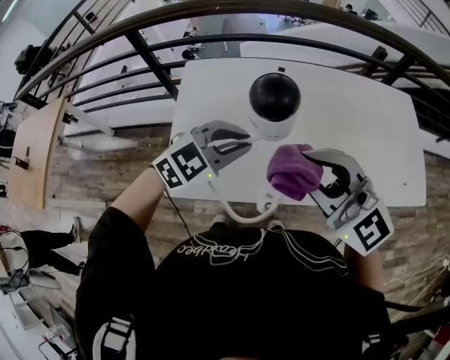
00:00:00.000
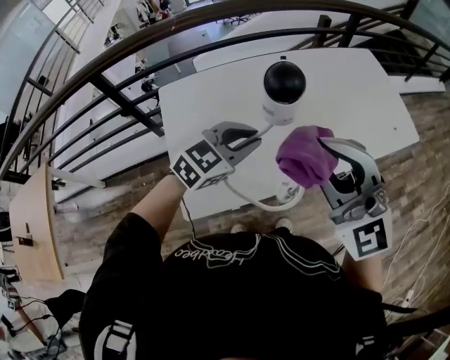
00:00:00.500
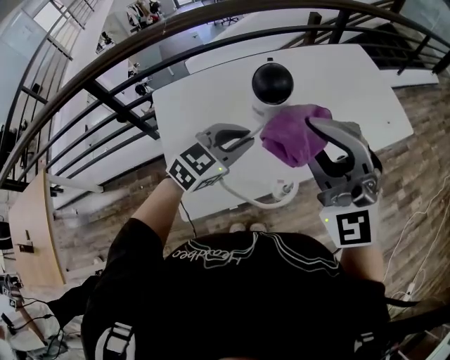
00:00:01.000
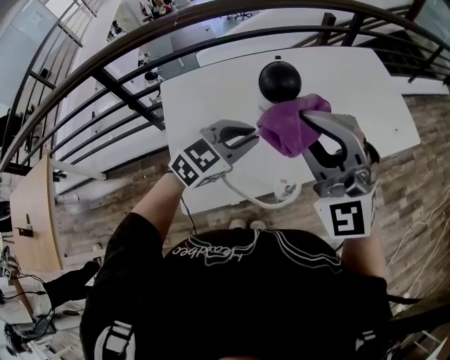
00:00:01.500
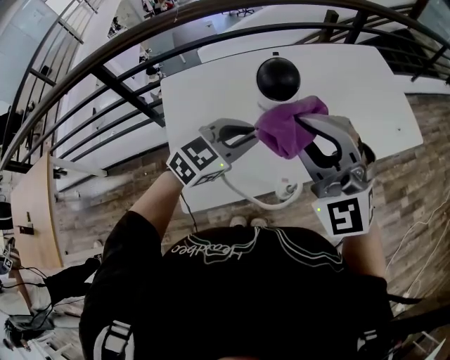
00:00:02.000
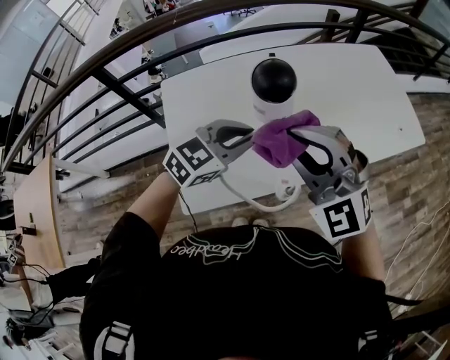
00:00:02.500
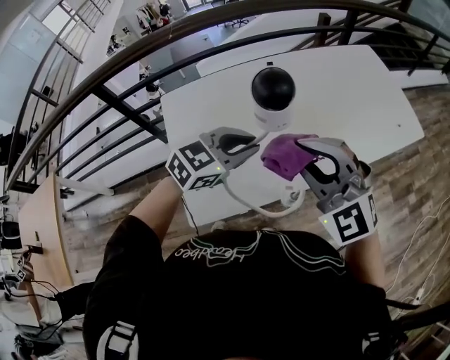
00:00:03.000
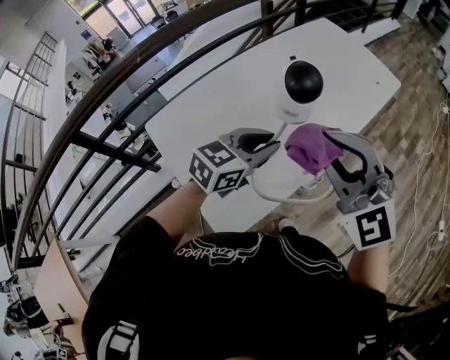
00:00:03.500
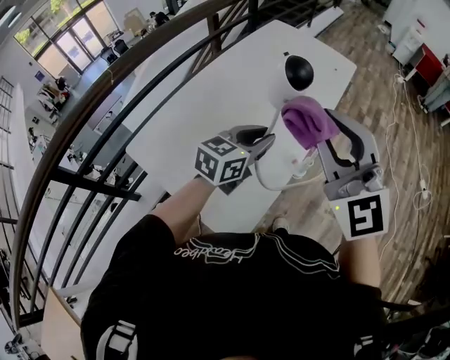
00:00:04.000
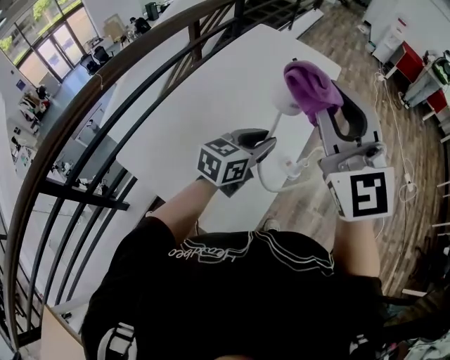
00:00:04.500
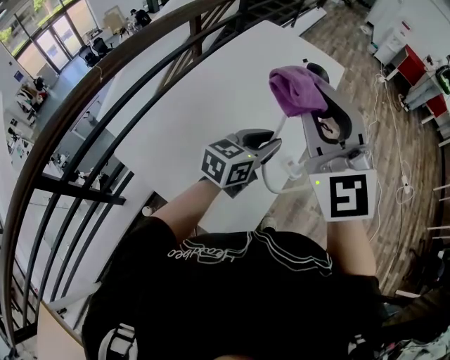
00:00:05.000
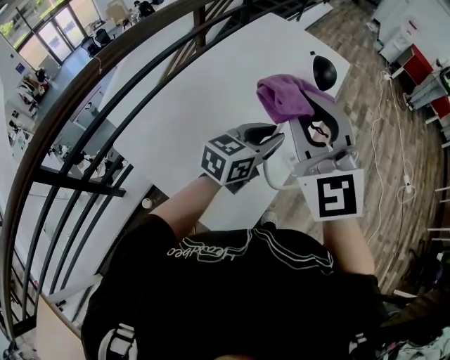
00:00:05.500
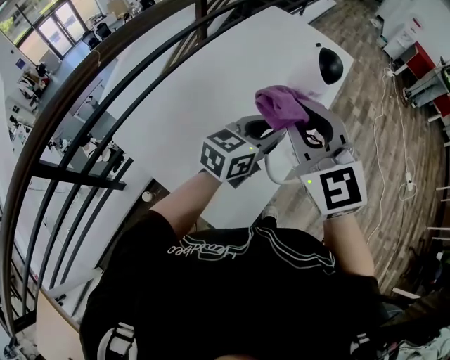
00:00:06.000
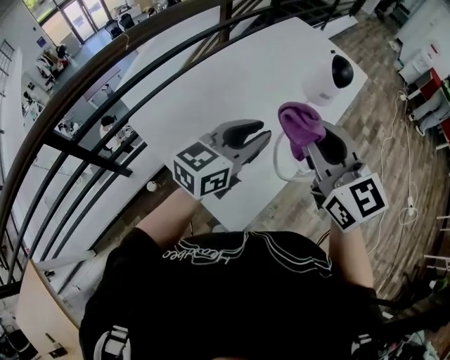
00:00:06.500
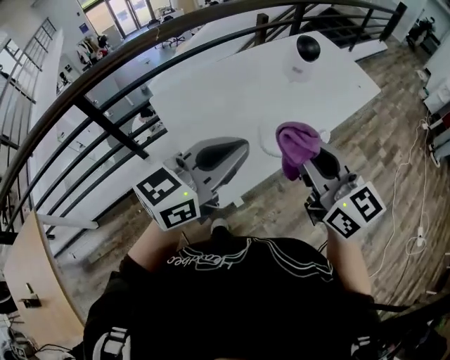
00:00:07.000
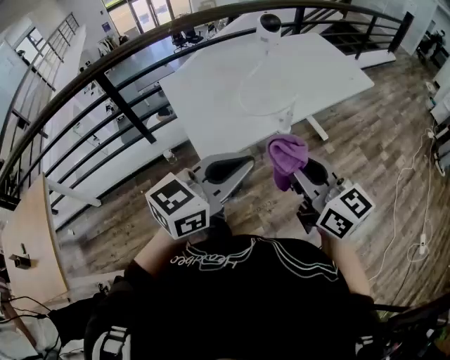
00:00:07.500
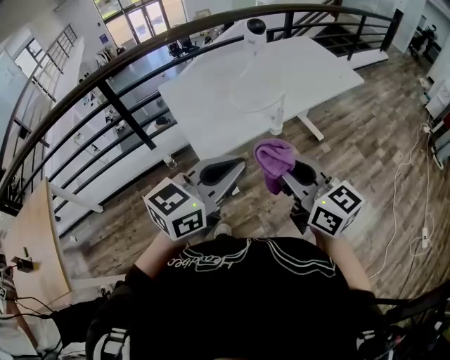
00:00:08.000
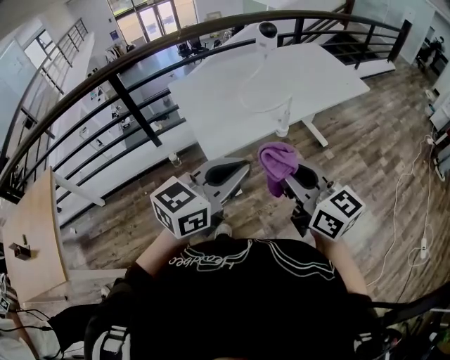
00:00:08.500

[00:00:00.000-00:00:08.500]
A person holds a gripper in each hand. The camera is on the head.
00:00:00.000 to 00:00:02.000: The right gripper shifts by approximately 5 cm, and rotates approximately 40 degrees.
00:00:02.000 to 00:00:04.000: The left gripper turns by about 30 degrees; the right gripper moves approximately 10 cm, and swivels some 50 degrees.
00:00:04.000 to 00:00:06.500: The left gripper moves to the left, backward and upward, approximately 10 cm; the right gripper heads to the left and downward, covering roughly 10 cm, and changes its angle by roughly 30 degrees.
00:00:06.500 to 00:00:08.500: The two grippers travel together, backward, approximately 40 cm. The right gripper turns by roughly 30 degrees. The left gripper closes.

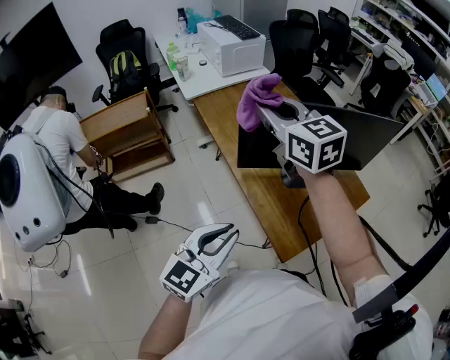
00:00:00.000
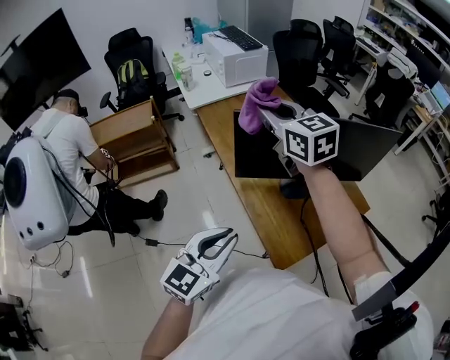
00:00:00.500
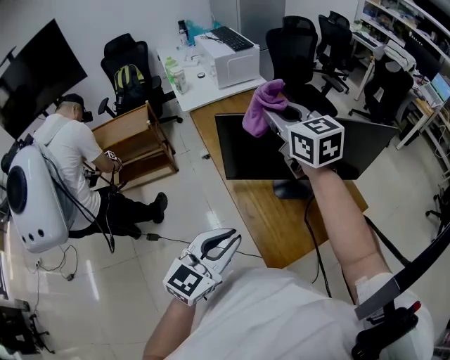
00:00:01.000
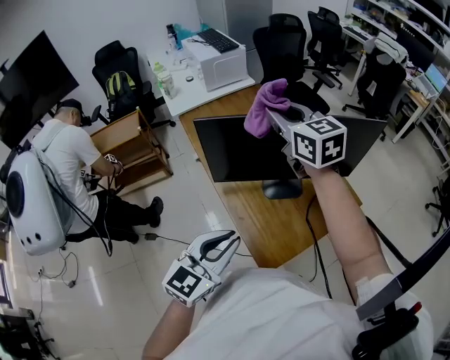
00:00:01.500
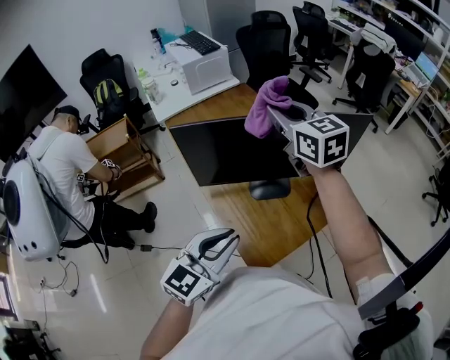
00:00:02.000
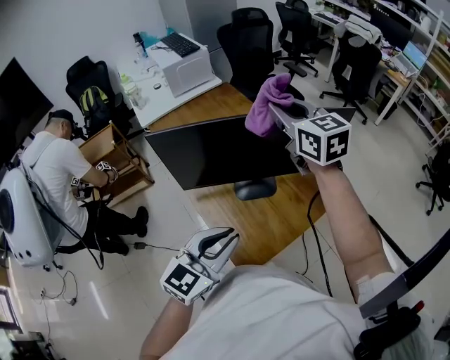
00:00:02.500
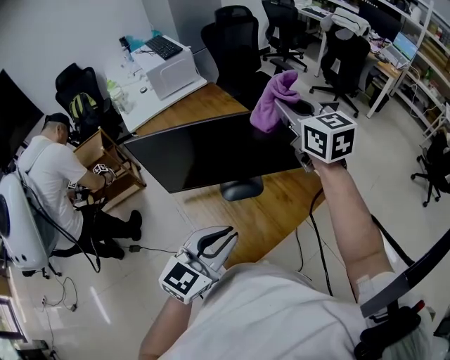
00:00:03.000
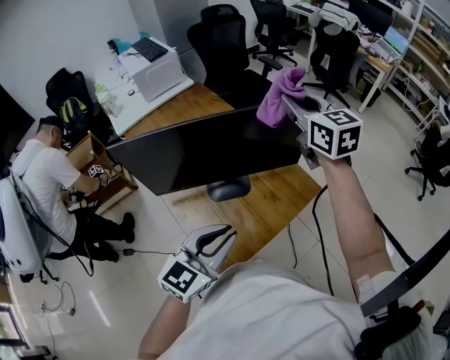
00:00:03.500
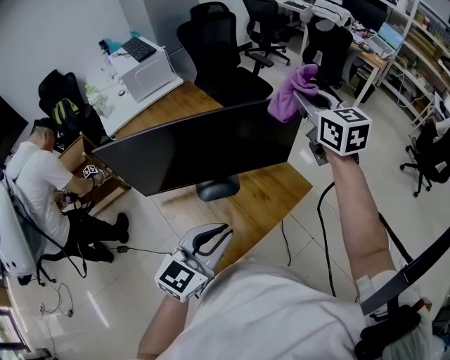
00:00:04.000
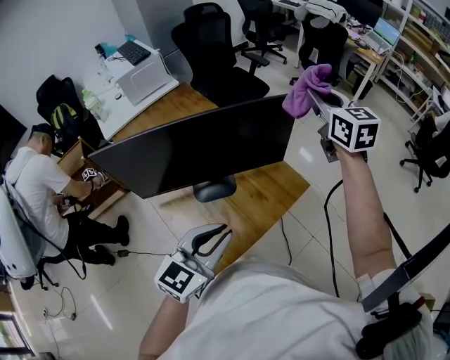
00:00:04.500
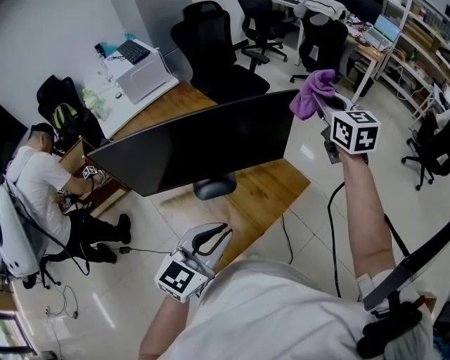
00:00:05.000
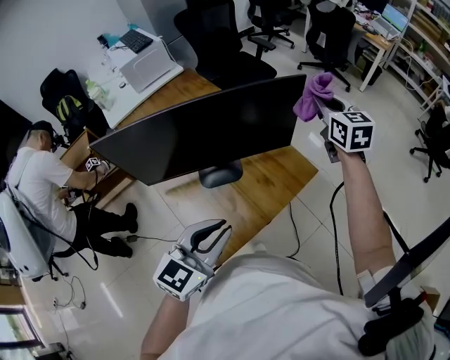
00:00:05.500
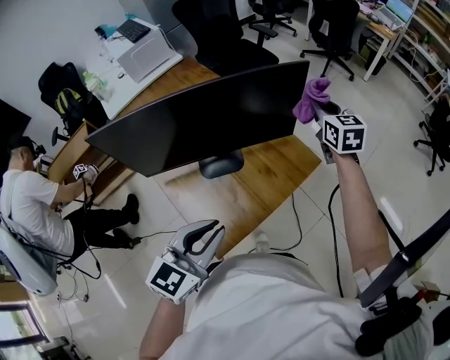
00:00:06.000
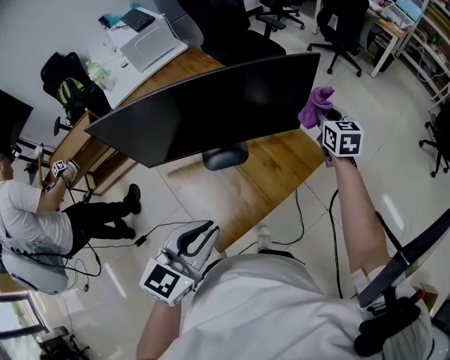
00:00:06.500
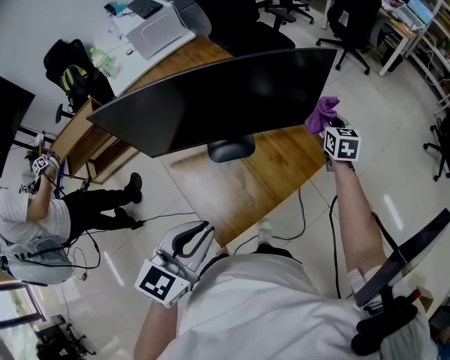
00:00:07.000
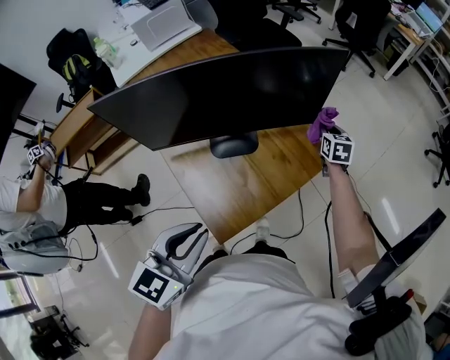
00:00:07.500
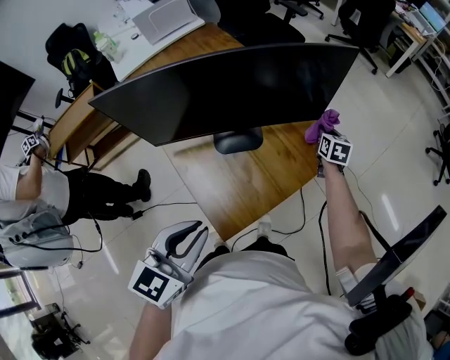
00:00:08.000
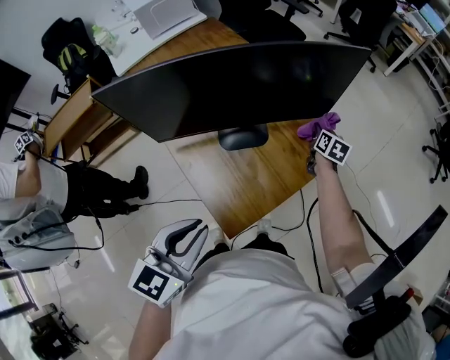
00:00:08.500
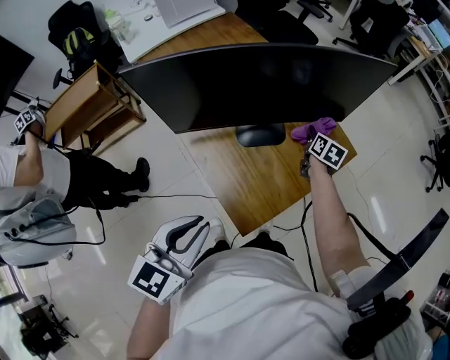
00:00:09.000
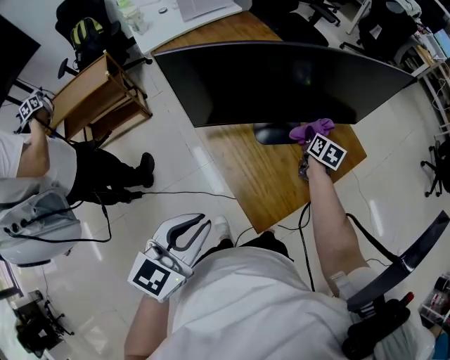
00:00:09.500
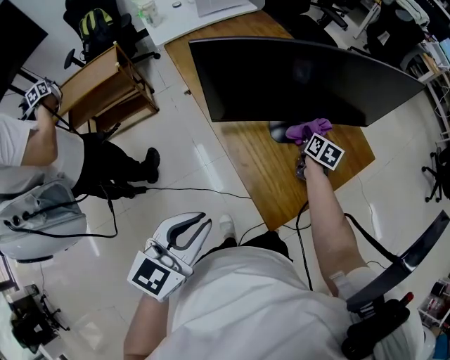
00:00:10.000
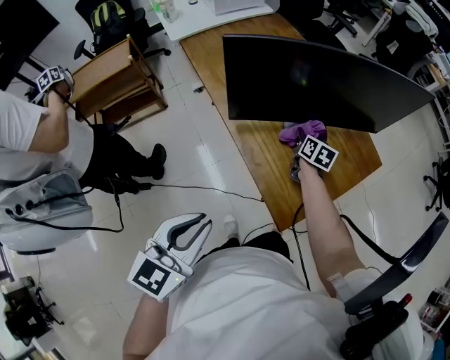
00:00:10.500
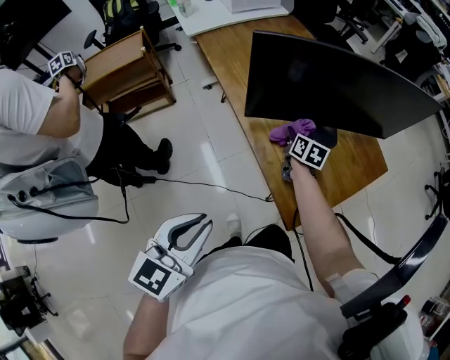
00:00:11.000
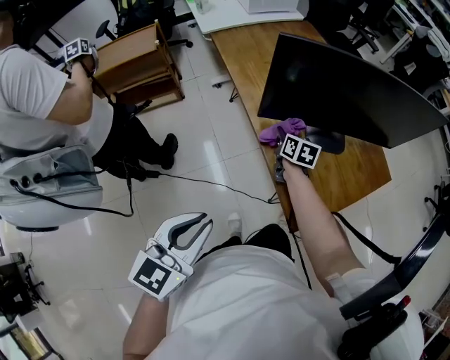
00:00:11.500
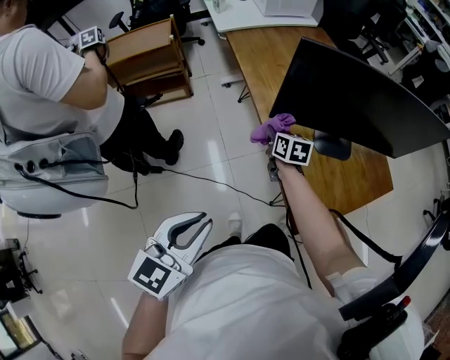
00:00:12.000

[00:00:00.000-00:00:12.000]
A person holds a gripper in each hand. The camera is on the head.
00:00:00.000 to 00:00:02.000: Both grippers travel together to the right, about 15 cm.
00:00:02.000 to 00:00:04.000: The right gripper is displaced to the right by about 25 cm. The left gripper travels to the right by some 15 cm.
00:00:04.000 to 00:00:06.000: The right gripper goes roughly 20 cm downward and to the right.
00:00:06.000 to 00:00:08.000: The right gripper travels downward by some 25 cm, and rotates about 30 degrees. Meanwhile the left gripper goes some 5 cm to the left.
00:00:08.000 to 00:00:10.000: Both grippers move to the left and backward, roughly 20 cm.
00:00:10.000 to 00:00:12.000: The right gripper travels to the left by roughly 30 cm, and turns by some 30 degrees; the left gripper is displaced to the left and backward by some 10 cm.

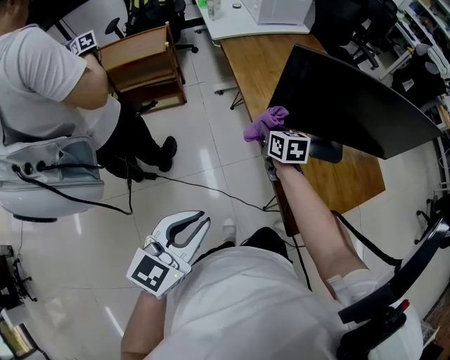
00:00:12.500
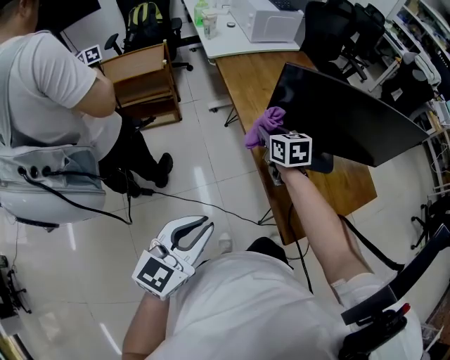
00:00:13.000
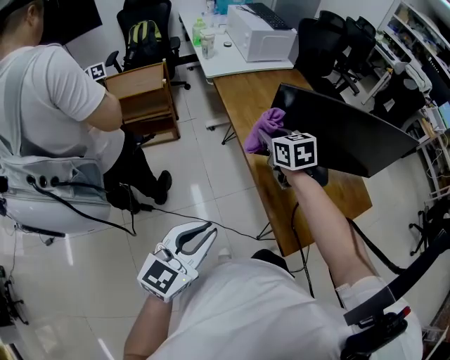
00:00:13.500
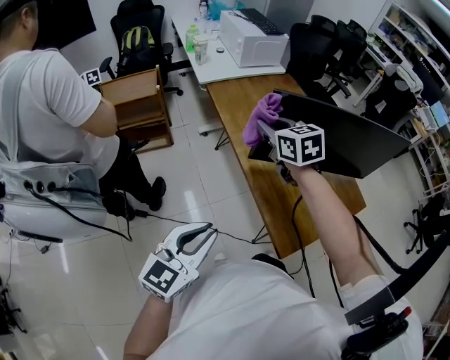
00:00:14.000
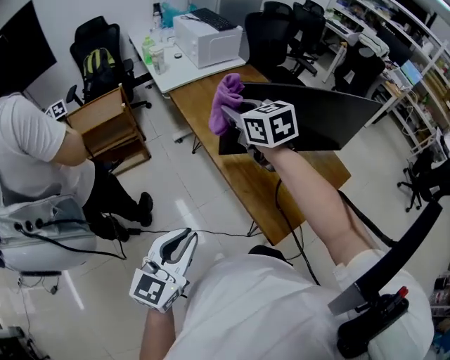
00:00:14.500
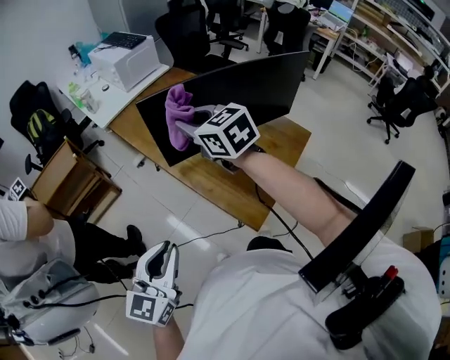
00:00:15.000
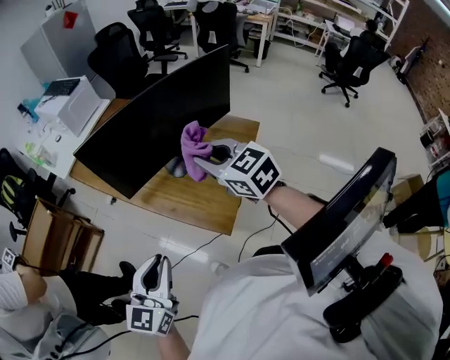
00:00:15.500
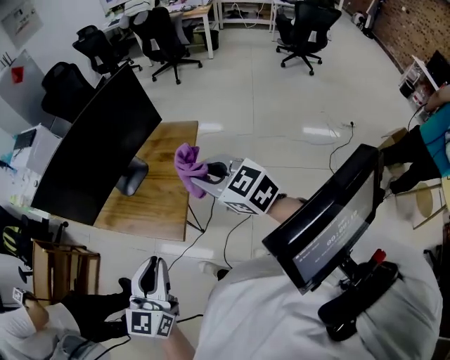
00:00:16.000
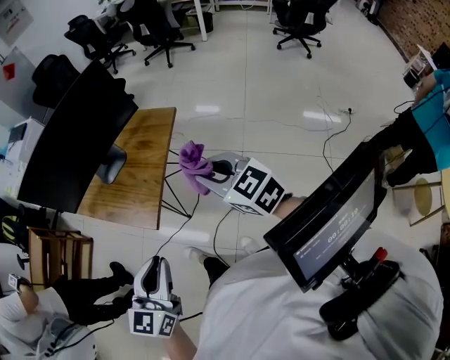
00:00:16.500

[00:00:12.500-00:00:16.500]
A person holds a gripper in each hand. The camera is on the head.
00:00:12.500 to 00:00:14.500: The right gripper is displaced upward by roughly 25 cm, and changes its angle by about 20 degrees.
00:00:14.500 to 00:00:16.500: The left gripper moves about 35 cm, and changes its angle by about 30 degrees. The right gripper ends up some 60 cm from where it was, and swivels about 20 degrees.

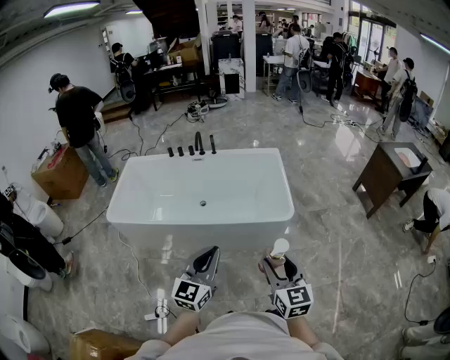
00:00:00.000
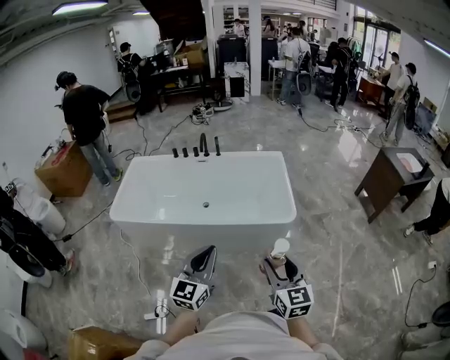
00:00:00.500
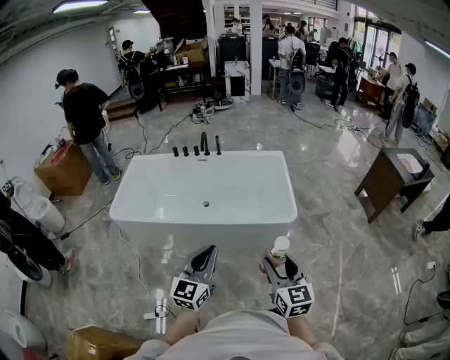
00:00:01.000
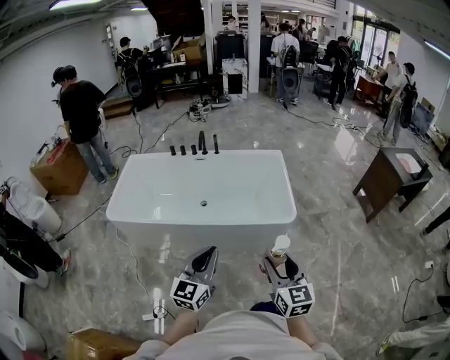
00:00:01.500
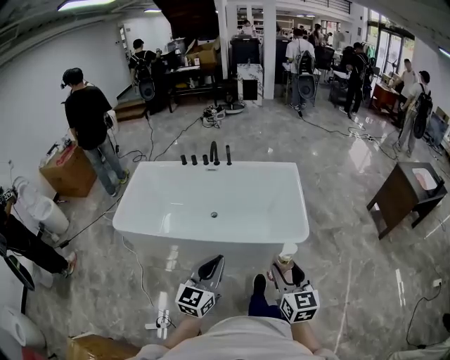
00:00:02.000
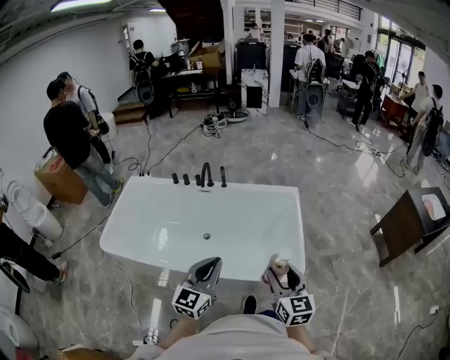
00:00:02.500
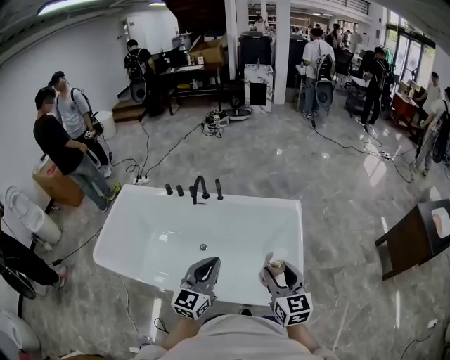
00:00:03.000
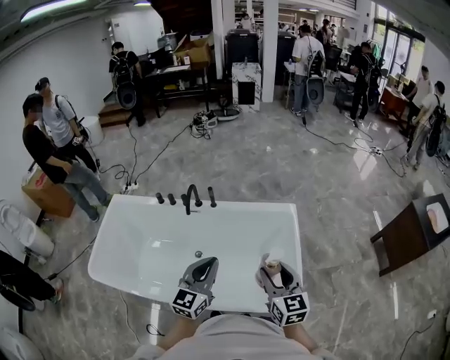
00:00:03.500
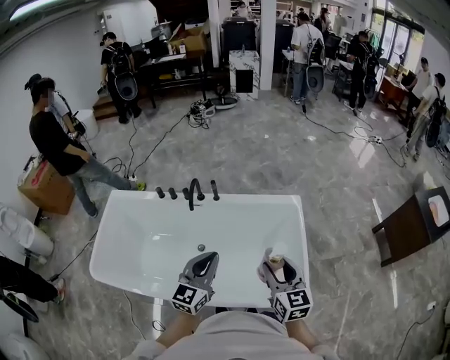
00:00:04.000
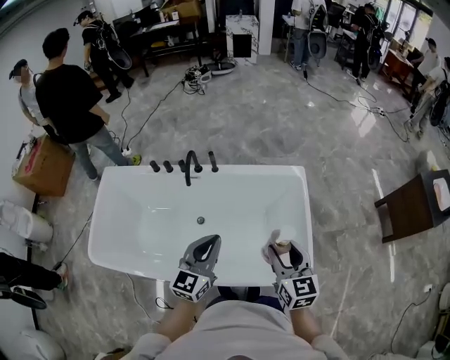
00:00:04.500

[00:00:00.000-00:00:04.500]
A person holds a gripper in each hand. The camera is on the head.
00:00:00.000 to 00:00:02.000: The two grippers go roughly 10 cm forward.
00:00:02.000 to 00:00:04.500: Both grippers are carried forward, some 50 cm.
